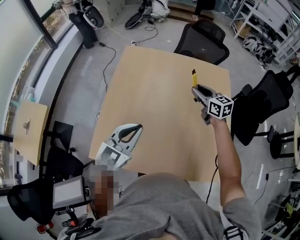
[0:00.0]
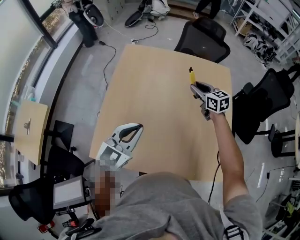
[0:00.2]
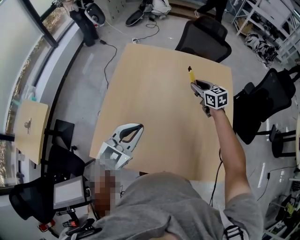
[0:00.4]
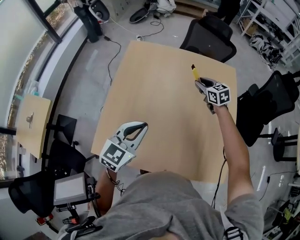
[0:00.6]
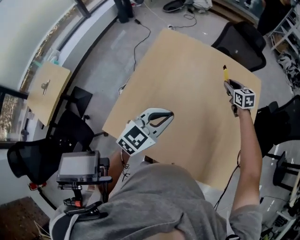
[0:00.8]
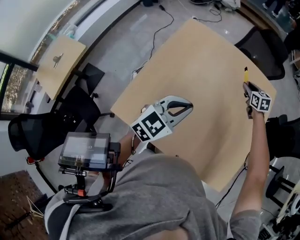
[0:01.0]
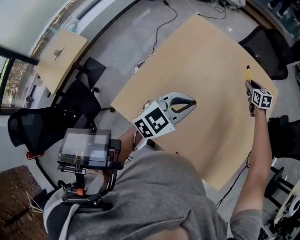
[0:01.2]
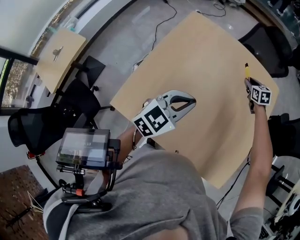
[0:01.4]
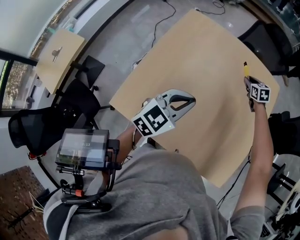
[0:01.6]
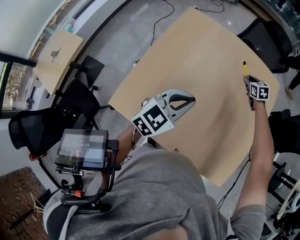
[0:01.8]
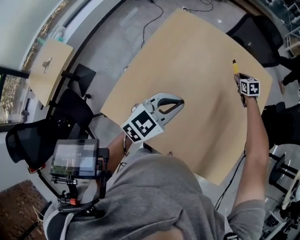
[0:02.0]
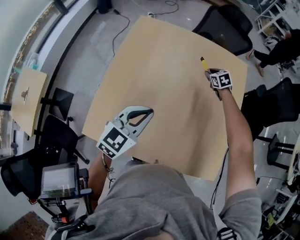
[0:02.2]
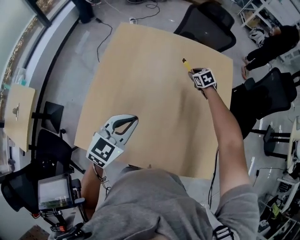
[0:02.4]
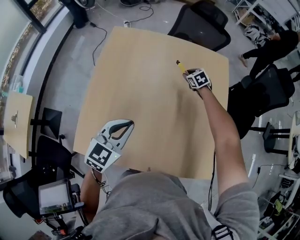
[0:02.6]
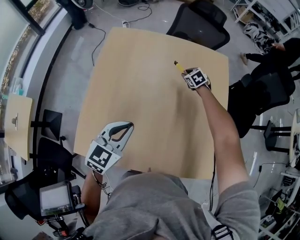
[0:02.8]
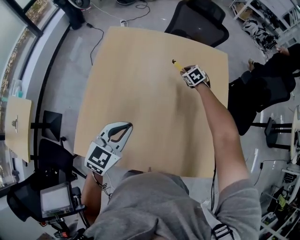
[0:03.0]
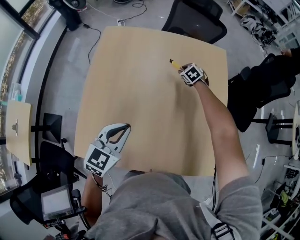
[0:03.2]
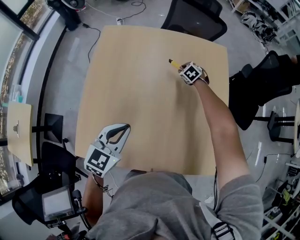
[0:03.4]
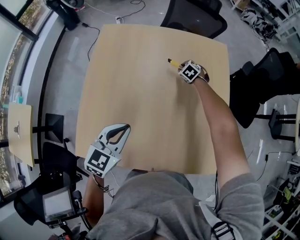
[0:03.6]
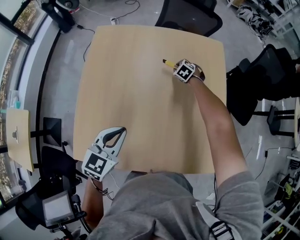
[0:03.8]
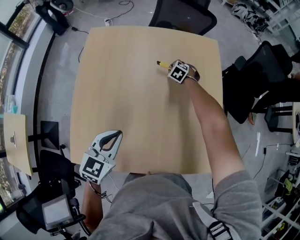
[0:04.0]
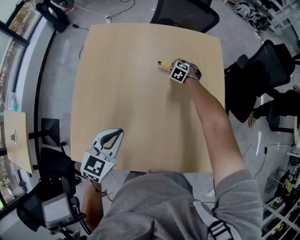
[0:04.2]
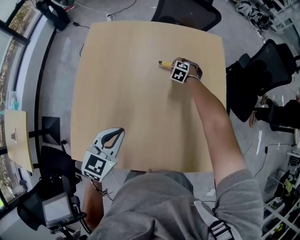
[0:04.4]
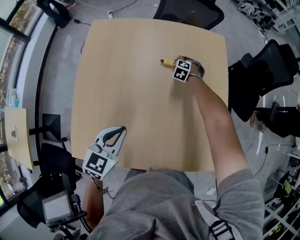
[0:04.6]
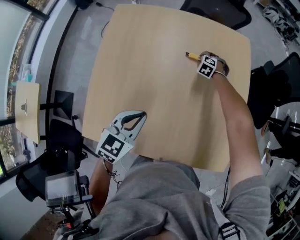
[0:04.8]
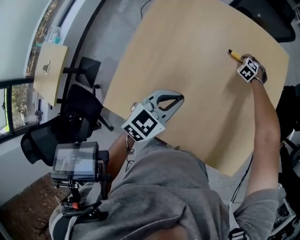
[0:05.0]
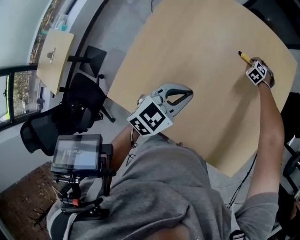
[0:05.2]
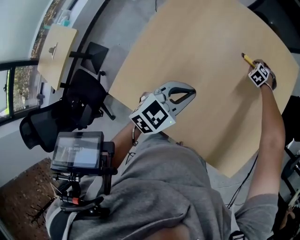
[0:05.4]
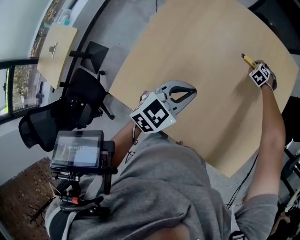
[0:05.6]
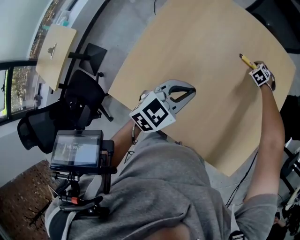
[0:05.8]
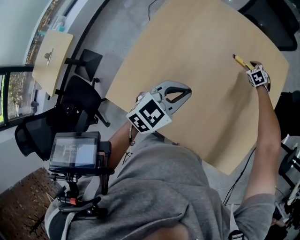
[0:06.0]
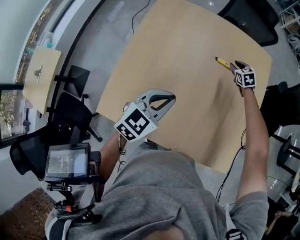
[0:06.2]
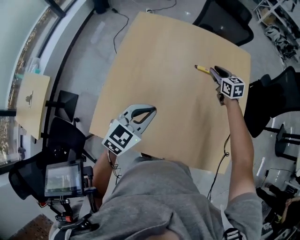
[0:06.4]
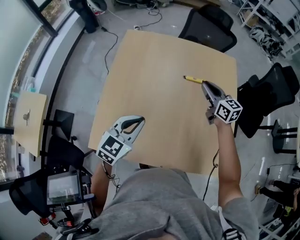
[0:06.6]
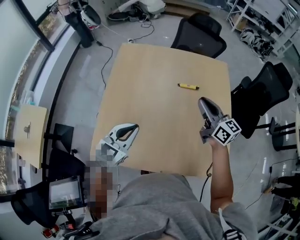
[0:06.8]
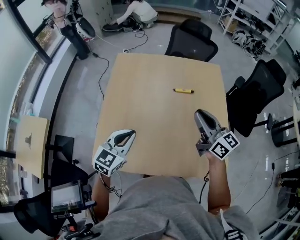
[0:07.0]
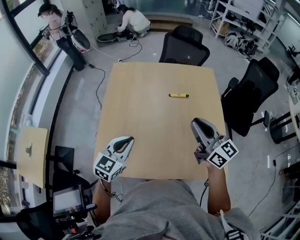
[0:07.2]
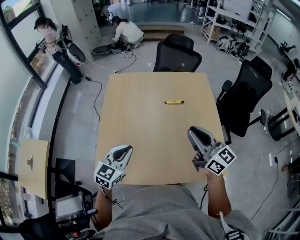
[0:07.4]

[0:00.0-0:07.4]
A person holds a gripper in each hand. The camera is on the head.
0:00.0 to 0:01.4: The right gripper travels downward and forward by about 20 cm, and swivels about 30 degrees. The left gripper ends up about 5 cm from where it was.
0:01.4 to 0:03.0: The right gripper travels downward by about 10 cm.
0:03.0 to 0:04.4: The right gripper shifts some 10 cm downward, and turns by some 30 degrees.
0:04.4 to 0:06.0: The grippers stay close to where they were, moving slightly.
0:06.0 to 0:07.4: The right gripper shifts approximately 60 cm upward and backward, and angles its fingers upward, by approximately 70 degrees. The left gripper moves backward, upward and to the left, some 15 cm.

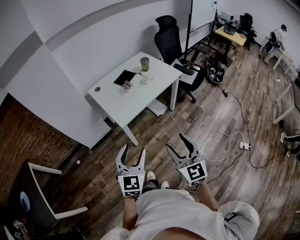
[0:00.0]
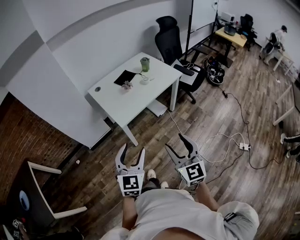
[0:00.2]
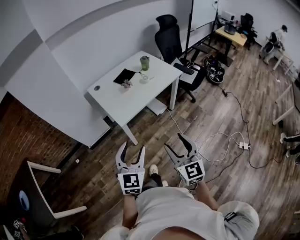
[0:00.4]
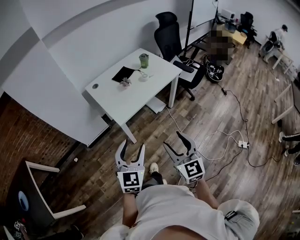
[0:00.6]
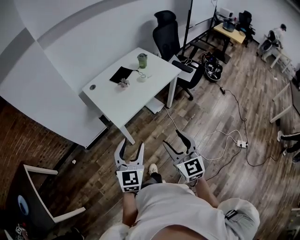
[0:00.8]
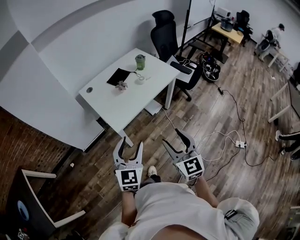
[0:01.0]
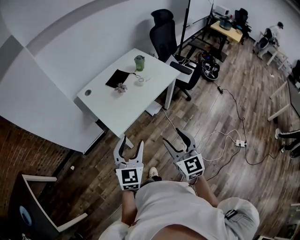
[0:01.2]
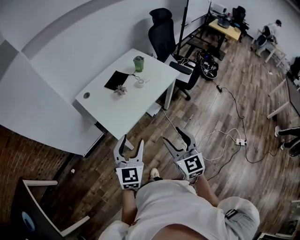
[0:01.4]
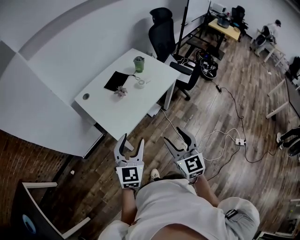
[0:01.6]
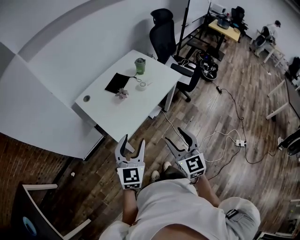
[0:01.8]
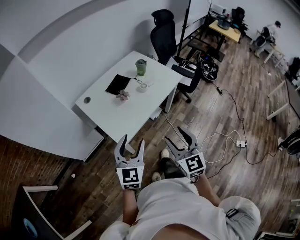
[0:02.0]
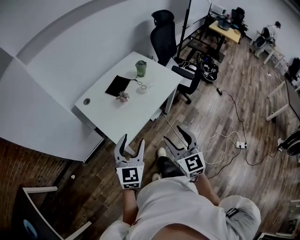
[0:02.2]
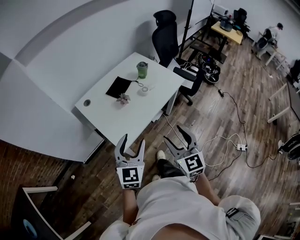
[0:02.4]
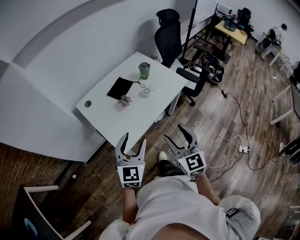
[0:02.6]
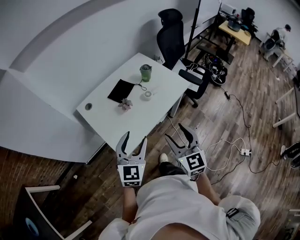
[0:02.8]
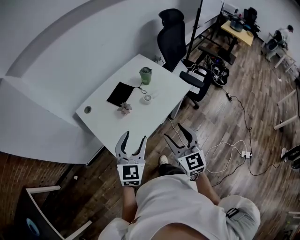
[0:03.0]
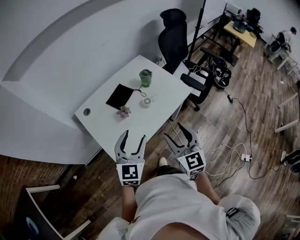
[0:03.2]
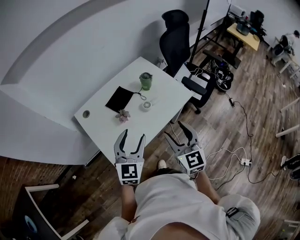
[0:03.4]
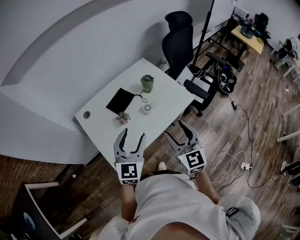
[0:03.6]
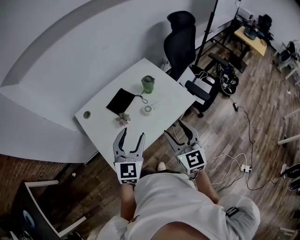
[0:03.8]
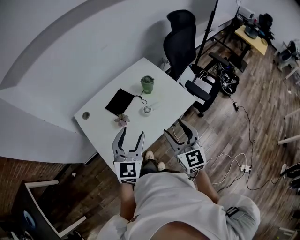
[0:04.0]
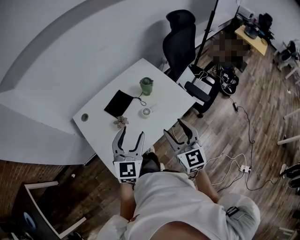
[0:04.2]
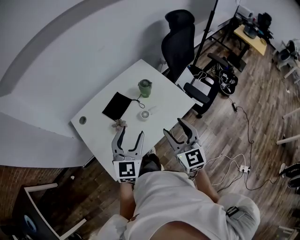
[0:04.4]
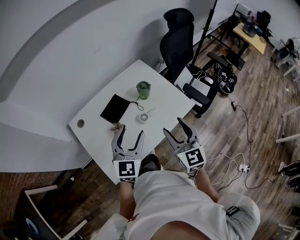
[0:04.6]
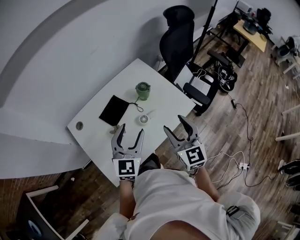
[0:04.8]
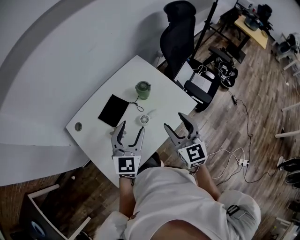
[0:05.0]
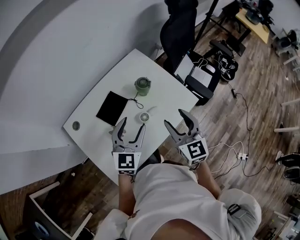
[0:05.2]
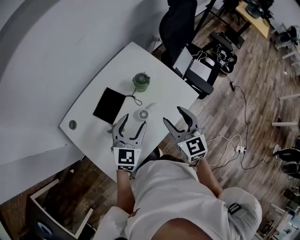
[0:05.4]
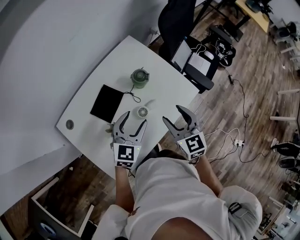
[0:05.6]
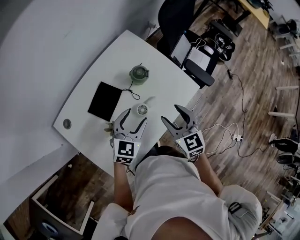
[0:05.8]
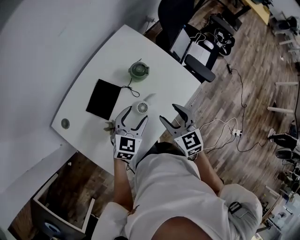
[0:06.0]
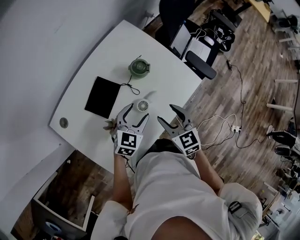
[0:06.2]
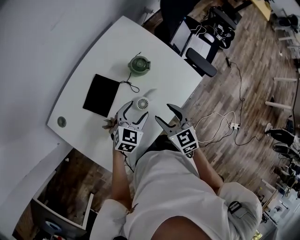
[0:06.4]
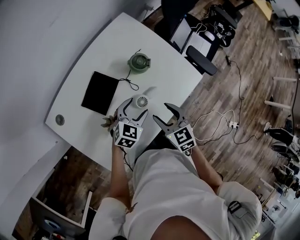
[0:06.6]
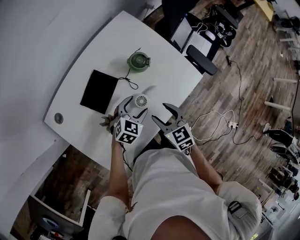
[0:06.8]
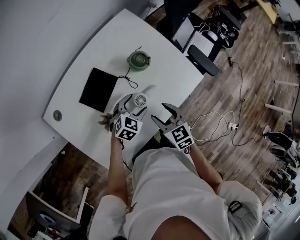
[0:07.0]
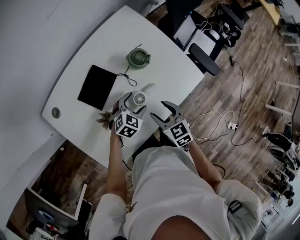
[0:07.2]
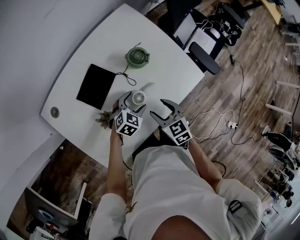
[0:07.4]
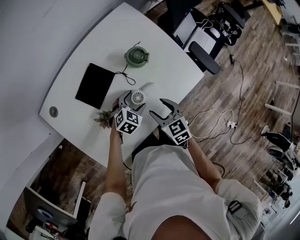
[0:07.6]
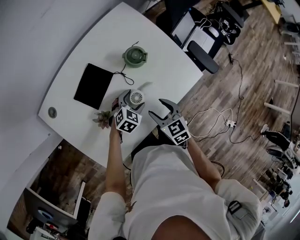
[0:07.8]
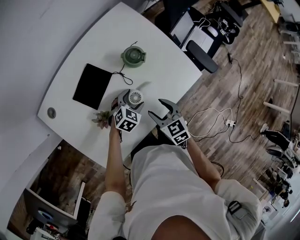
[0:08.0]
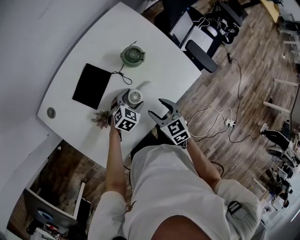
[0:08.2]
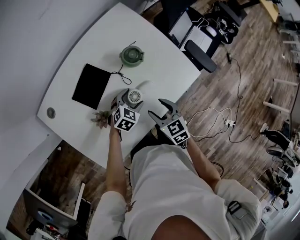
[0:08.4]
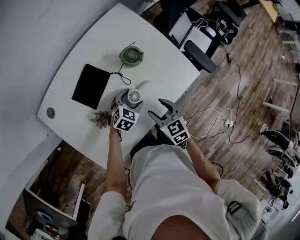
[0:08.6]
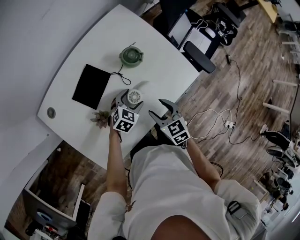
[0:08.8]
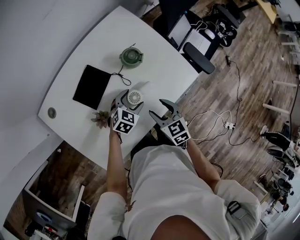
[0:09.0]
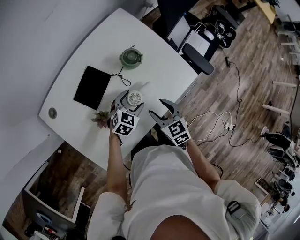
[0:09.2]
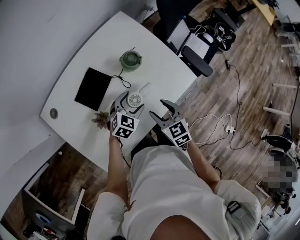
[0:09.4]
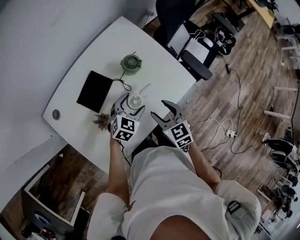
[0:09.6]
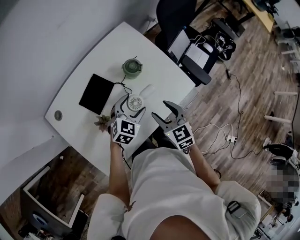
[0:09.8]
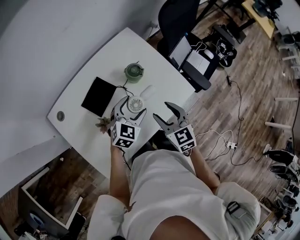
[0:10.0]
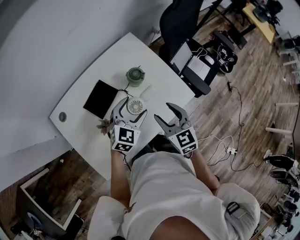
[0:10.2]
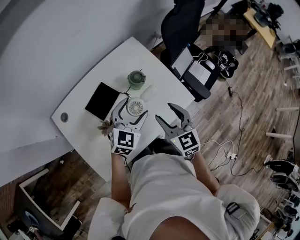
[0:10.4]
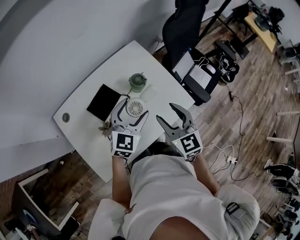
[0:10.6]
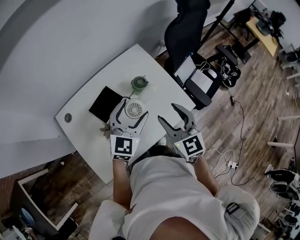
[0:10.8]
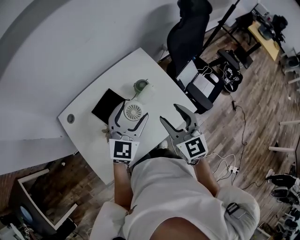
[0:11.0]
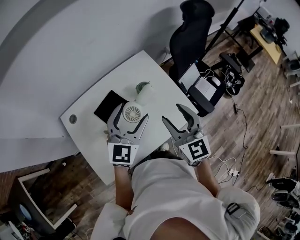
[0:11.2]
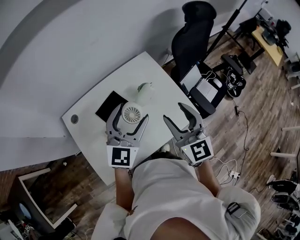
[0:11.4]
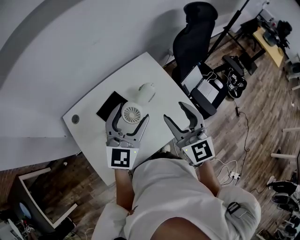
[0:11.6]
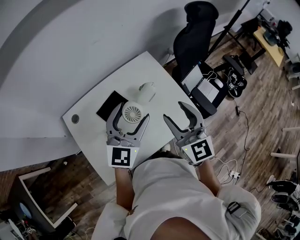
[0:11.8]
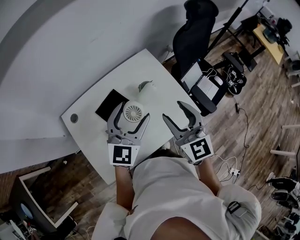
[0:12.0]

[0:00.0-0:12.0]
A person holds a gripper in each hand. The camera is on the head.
0:00.0 to 0:01.6: Both grippers move forward, roughly 20 cm.
0:01.6 to 0:03.0: Both grippers move forward, approximately 20 cm.
0:03.0 to 0:04.4: The right gripper goes approximately 20 cm forward and to the right; the left gripper heads forward, covering about 15 cm.
0:04.4 to 0:06.0: Both grippers move downward and forward, approximately 25 cm. The right gripper changes its angle by about 20 degrees; the left gripper turns by roughly 30 degrees.
0:06.0 to 0:07.6: Both grippers travel together downward, about 15 cm. The left gripper changes its angle by roughly 20 degrees.
0:07.6 to 0:09.0: The grippers move only a little.
0:09.0 to 0:10.4: The grippers both shift upward by approximately 20 cm. The left gripper rotates roughly 30 degrees; the right gripper changes its angle by roughly 20 degrees.
0:10.4 to 0:12.0: The two grippers go approximately 15 cm upward. The left gripper swivels about 20 degrees.

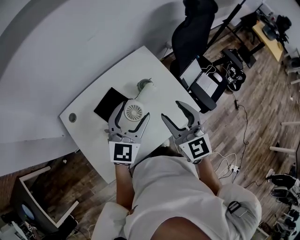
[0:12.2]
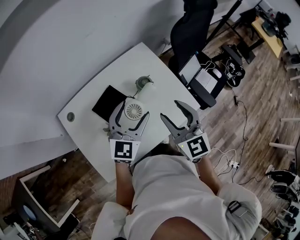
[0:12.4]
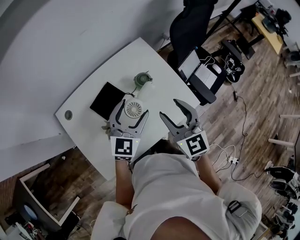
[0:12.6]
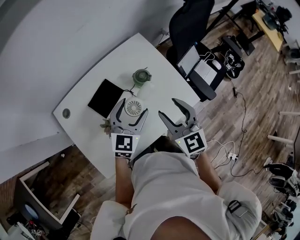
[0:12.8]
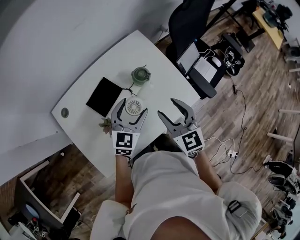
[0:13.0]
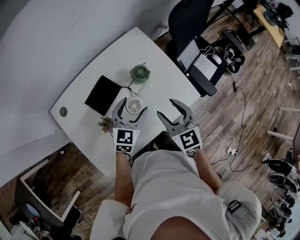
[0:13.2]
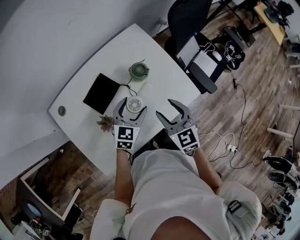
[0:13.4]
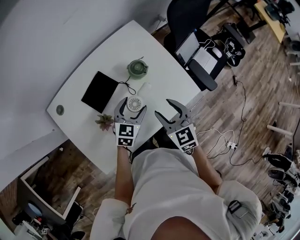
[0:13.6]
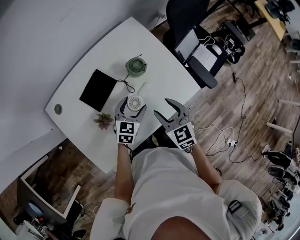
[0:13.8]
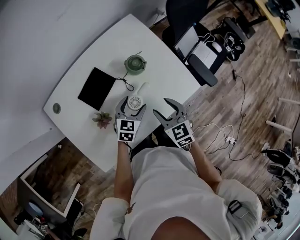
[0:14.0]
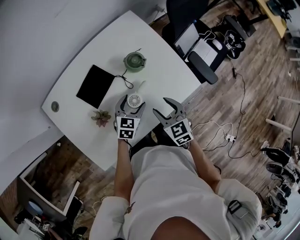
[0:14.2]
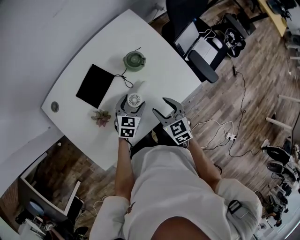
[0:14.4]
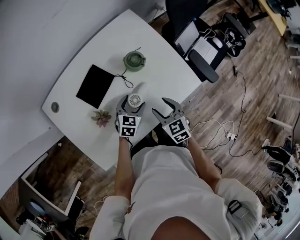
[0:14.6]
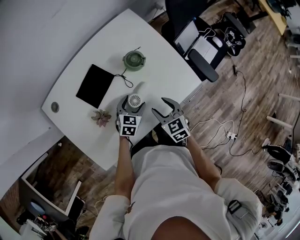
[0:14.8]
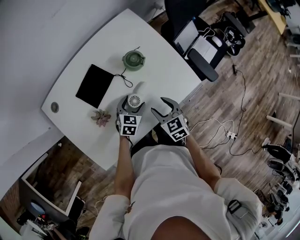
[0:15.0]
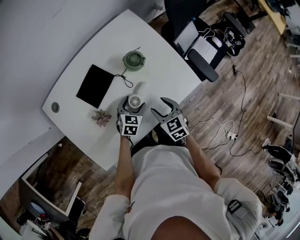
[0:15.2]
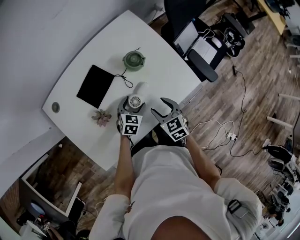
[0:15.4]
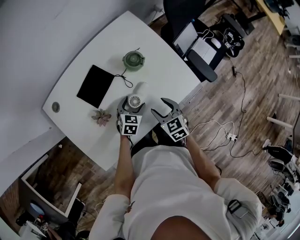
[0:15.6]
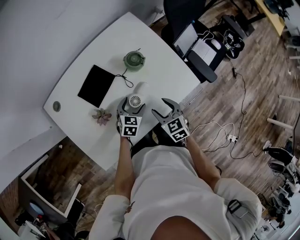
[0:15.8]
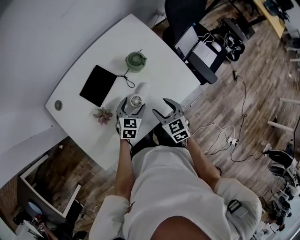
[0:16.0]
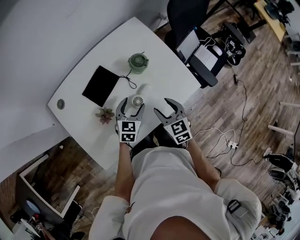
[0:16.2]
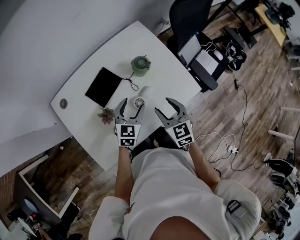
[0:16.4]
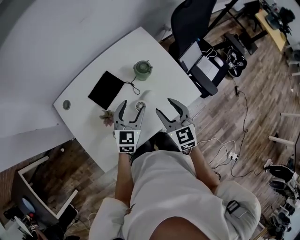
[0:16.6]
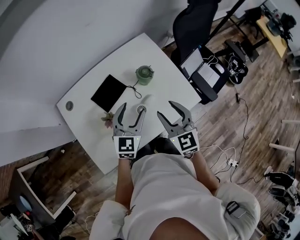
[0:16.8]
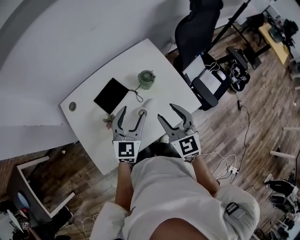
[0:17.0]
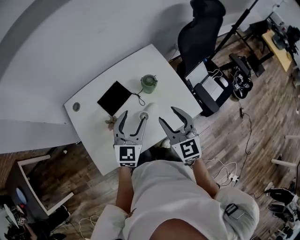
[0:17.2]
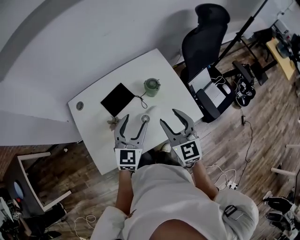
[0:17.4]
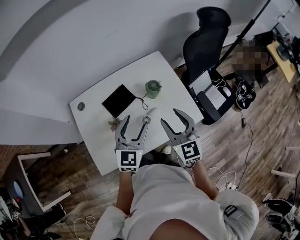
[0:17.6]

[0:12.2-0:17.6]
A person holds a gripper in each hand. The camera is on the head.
0:12.2 to 0:13.6: Both grippers move downward, about 20 cm. The right gripper changes its angle by about 20 degrees, while the left gripper changes its angle by some 30 degrees.
0:13.6 to 0:15.0: The two grippers go some 15 cm downward.
0:15.0 to 0:16.2: The left gripper is displaced upward by some 10 cm, while the right gripper moves upward, about 5 cm.
0:16.2 to 0:17.6: Both grippers move upward, roughly 20 cm. The left gripper turns by some 30 degrees; the right gripper rotates about 30 degrees.
